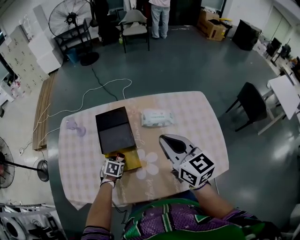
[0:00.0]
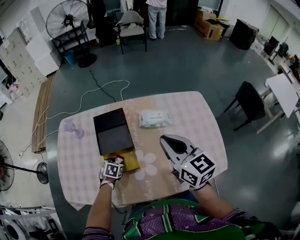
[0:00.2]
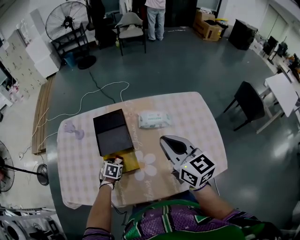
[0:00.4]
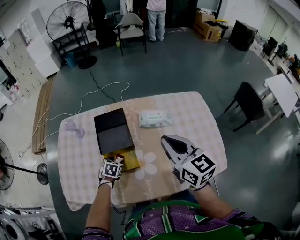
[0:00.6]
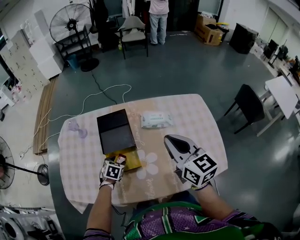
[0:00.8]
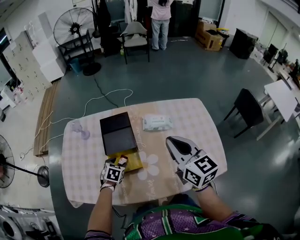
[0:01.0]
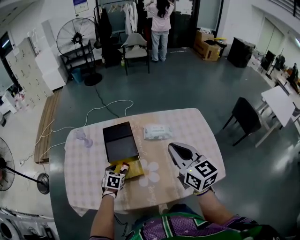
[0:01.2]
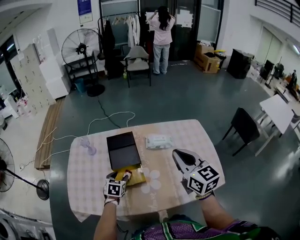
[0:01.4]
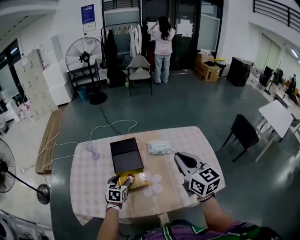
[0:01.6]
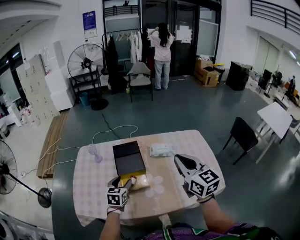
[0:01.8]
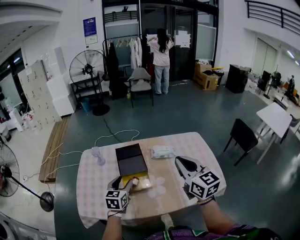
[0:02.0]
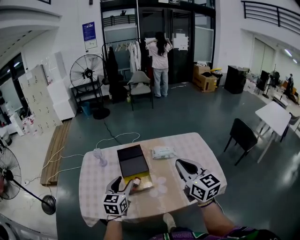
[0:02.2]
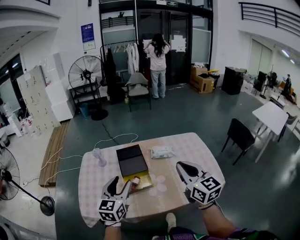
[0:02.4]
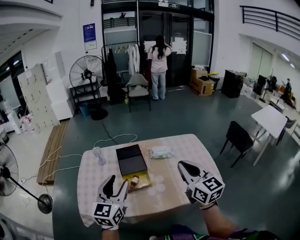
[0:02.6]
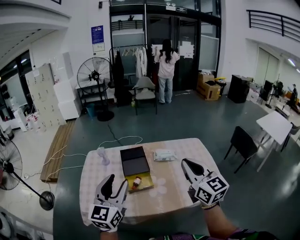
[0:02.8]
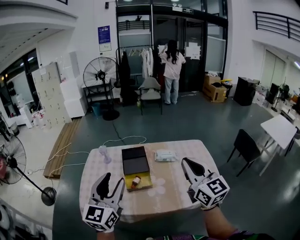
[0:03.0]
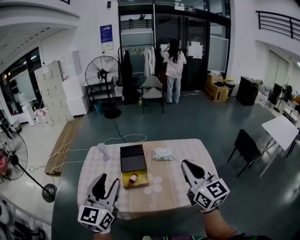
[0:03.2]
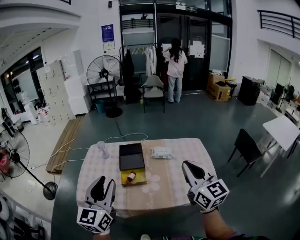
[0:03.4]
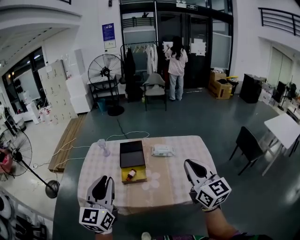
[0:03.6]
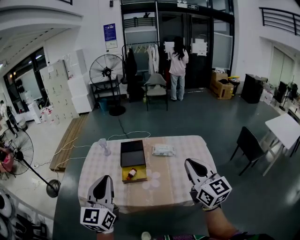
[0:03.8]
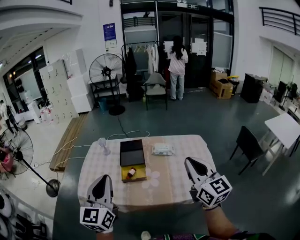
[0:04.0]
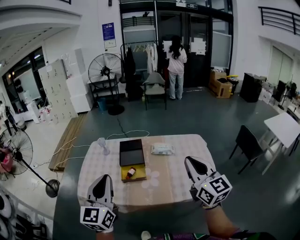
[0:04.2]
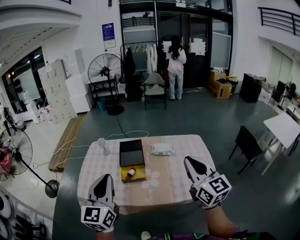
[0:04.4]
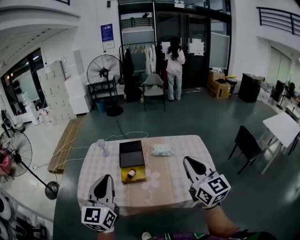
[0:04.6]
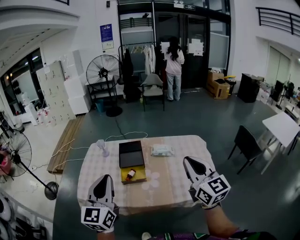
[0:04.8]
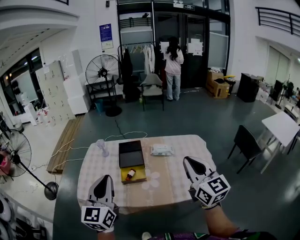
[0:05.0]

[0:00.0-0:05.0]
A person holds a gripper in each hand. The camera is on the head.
0:00.0 to 0:01.6: The right gripper heads upward and backward, covering roughly 15 cm. The left gripper shifts about 15 cm upward, and rotates approximately 30 degrees.
0:01.6 to 0:03.4: The left gripper travels upward and backward by roughly 40 cm, angles its fingers upward, by roughly 40 degrees, and closes its fingers; the right gripper moves backward and upward, approximately 20 cm.
0:03.4 to 0:05.0: The left gripper closes its fingers.

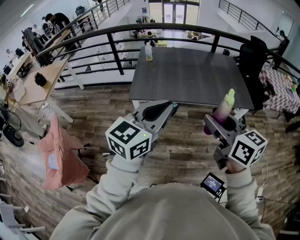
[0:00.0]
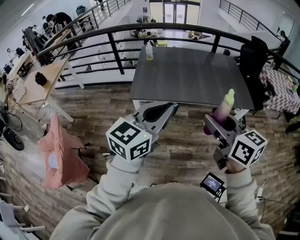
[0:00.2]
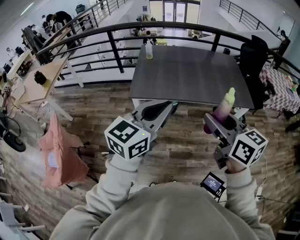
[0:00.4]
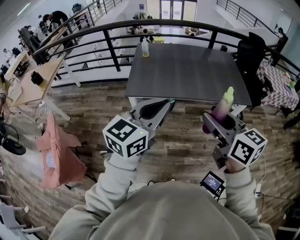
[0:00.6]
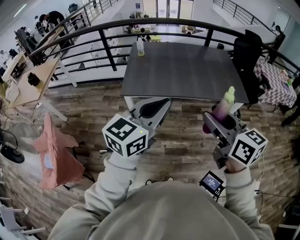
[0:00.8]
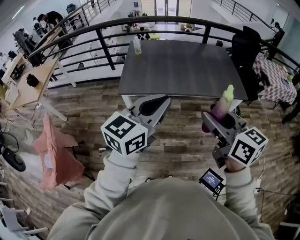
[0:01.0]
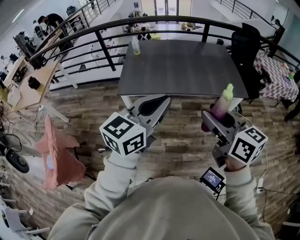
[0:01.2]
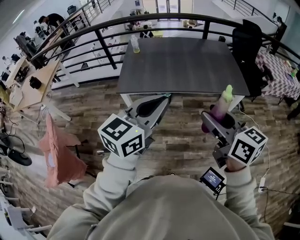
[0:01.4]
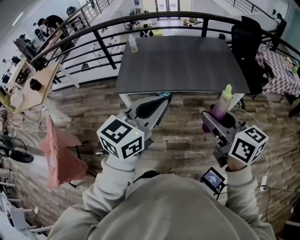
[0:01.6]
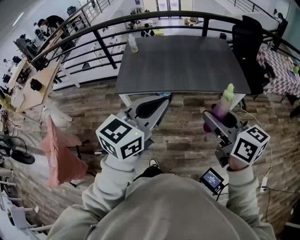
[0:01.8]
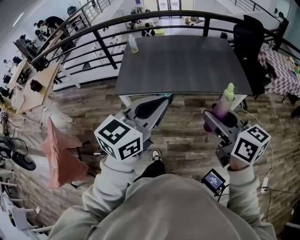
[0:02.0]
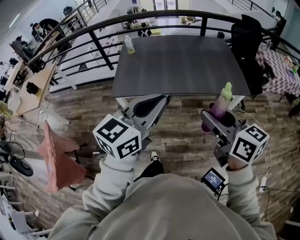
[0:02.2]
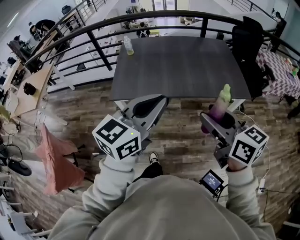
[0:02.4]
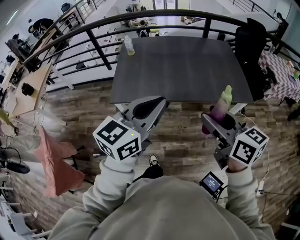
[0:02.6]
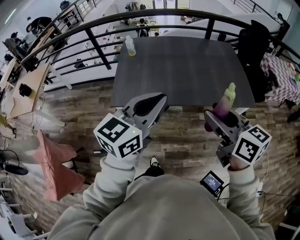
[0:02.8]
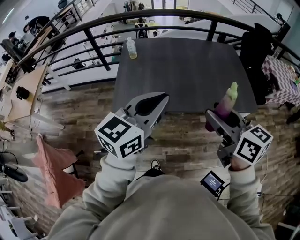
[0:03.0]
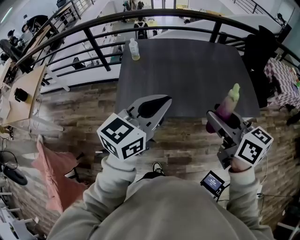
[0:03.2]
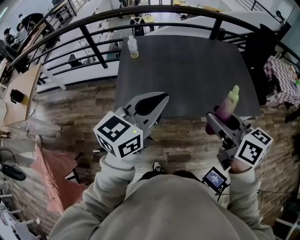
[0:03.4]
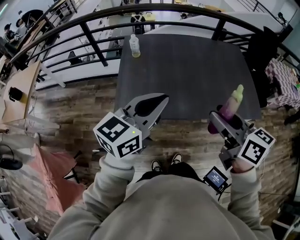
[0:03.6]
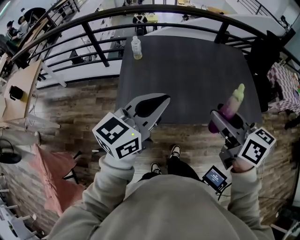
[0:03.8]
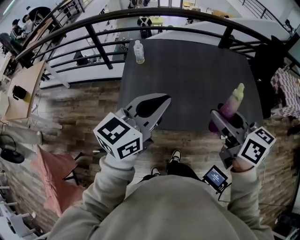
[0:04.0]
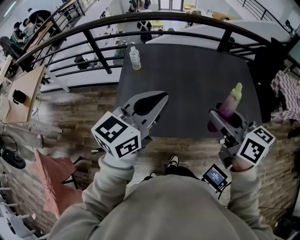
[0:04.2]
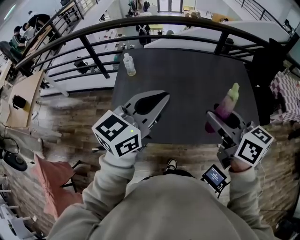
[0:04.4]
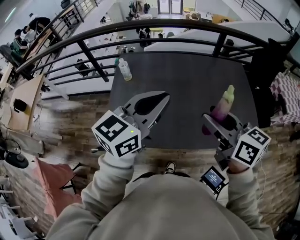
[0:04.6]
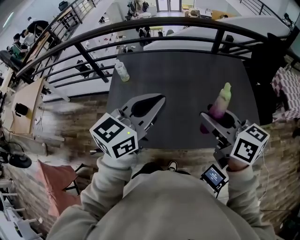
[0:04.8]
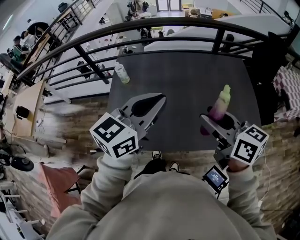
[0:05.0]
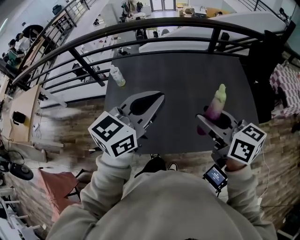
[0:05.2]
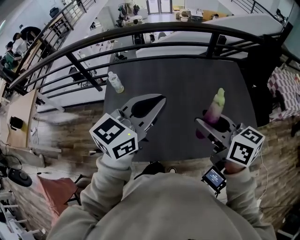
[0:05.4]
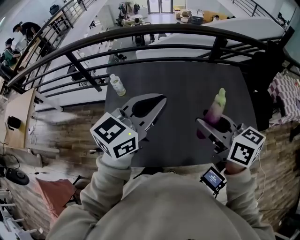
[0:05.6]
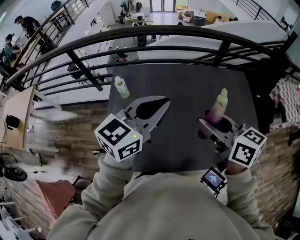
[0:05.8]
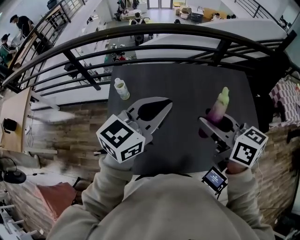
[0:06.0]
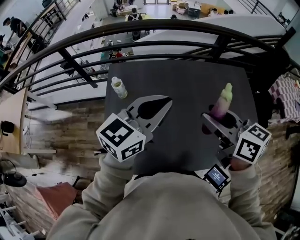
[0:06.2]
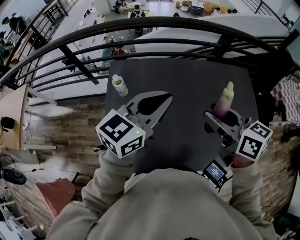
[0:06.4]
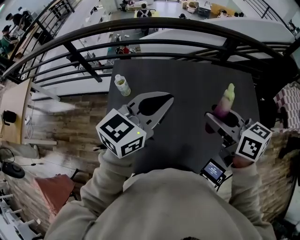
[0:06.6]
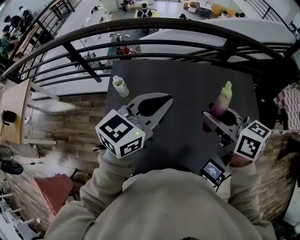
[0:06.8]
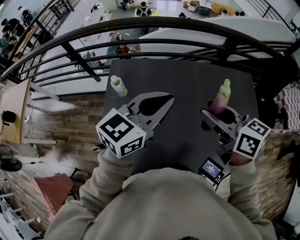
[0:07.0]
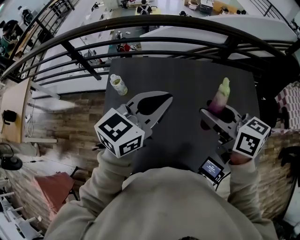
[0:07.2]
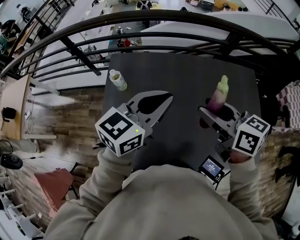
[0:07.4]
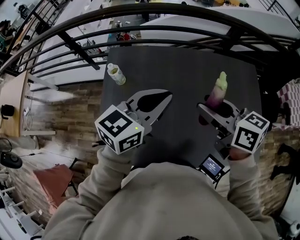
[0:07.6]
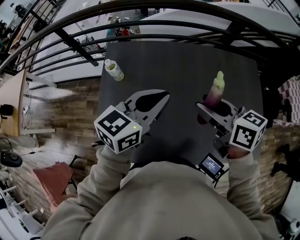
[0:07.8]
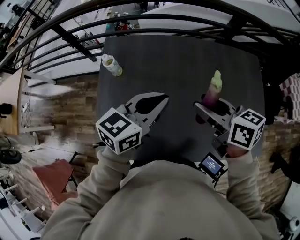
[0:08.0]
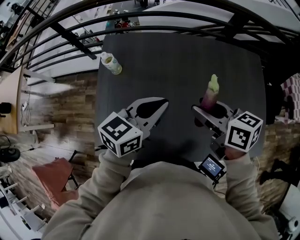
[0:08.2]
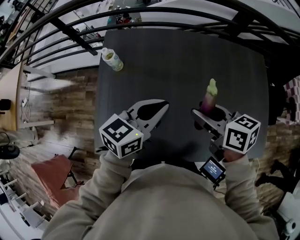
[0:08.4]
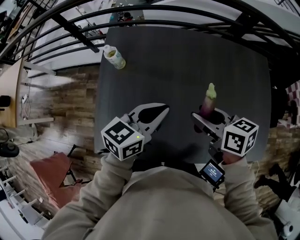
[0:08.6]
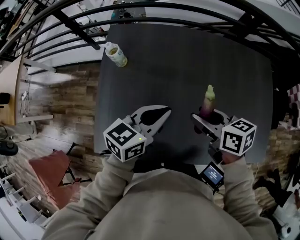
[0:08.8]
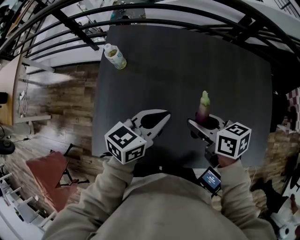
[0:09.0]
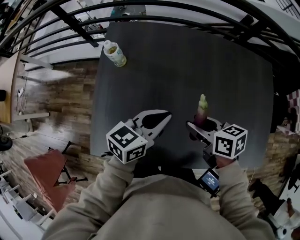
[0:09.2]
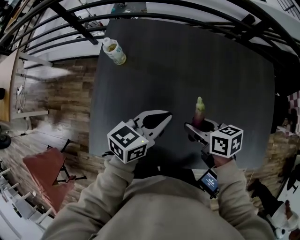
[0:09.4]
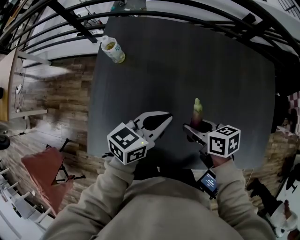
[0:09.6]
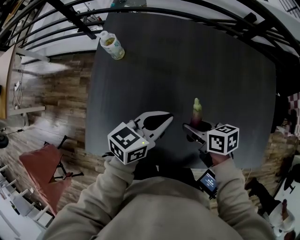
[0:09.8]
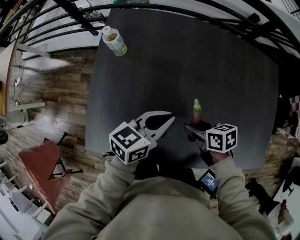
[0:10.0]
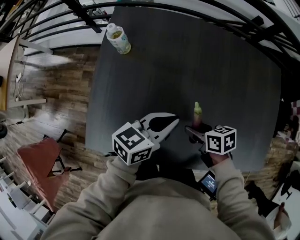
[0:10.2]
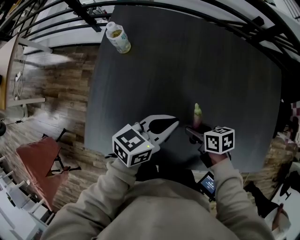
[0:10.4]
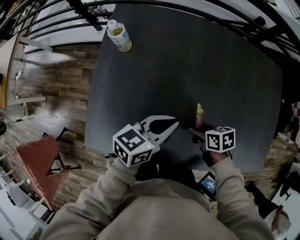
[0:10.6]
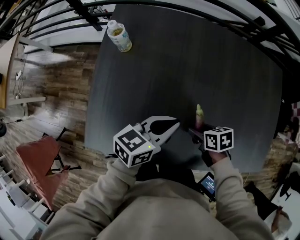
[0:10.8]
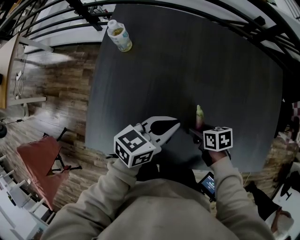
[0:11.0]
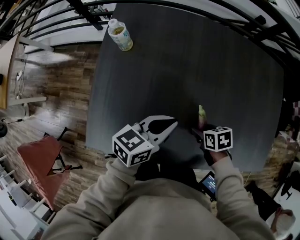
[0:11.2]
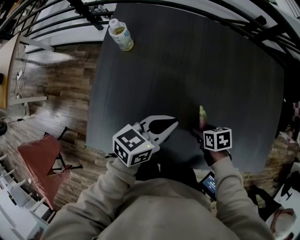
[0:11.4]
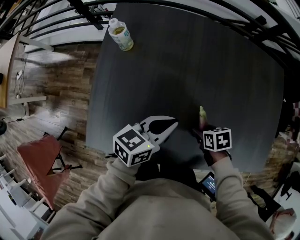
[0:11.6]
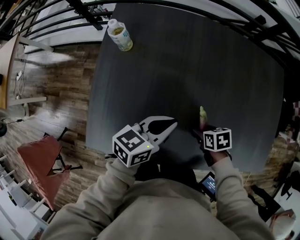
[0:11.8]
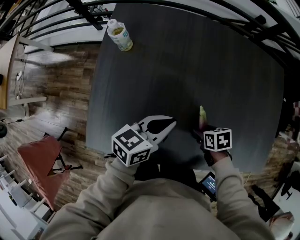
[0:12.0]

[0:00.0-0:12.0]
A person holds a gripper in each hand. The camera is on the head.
0:00.0 to 0:01.6: Both grippers move to the right, some 10 cm.
0:01.6 to 0:03.0: Both grippers travel together forward, about 20 cm.
0:03.0 to 0:04.4: Both grippers move forward, approximately 20 cm.
0:04.4 to 0:06.0: The grippers both shift forward by about 20 cm.
0:06.0 to 0:07.6: The left gripper goes some 5 cm downward, while the right gripper shifts some 10 cm forward and downward.
0:07.6 to 0:09.0: Both grippers move downward, some 15 cm. The right gripper changes its angle by about 20 degrees.
0:09.0 to 0:10.4: The left gripper goes some 5 cm downward. The right gripper heads downward, covering approximately 15 cm, and changes its angle by about 20 degrees.
0:10.4 to 0:12.0: The right gripper travels downward by roughly 5 cm.

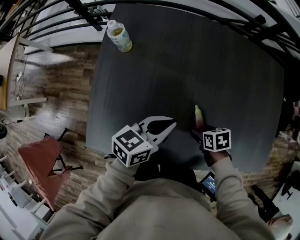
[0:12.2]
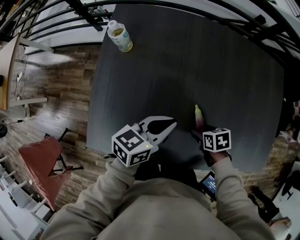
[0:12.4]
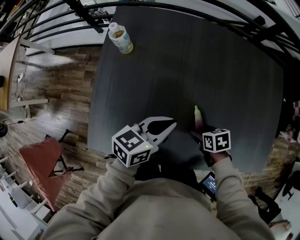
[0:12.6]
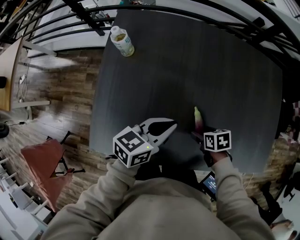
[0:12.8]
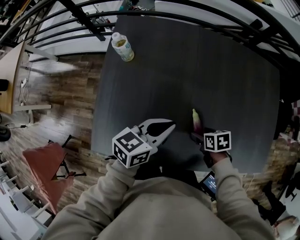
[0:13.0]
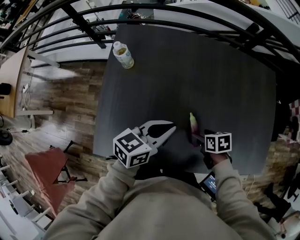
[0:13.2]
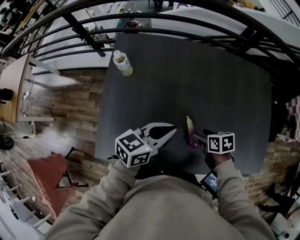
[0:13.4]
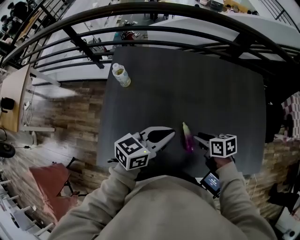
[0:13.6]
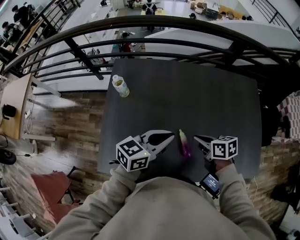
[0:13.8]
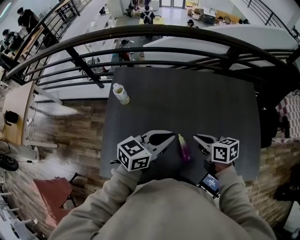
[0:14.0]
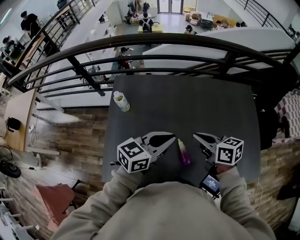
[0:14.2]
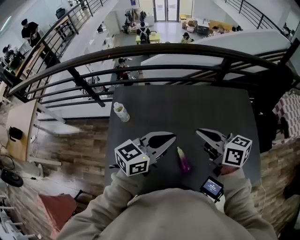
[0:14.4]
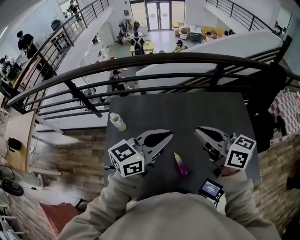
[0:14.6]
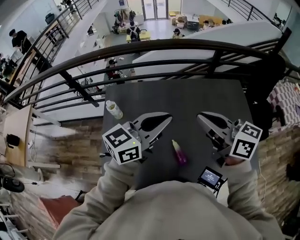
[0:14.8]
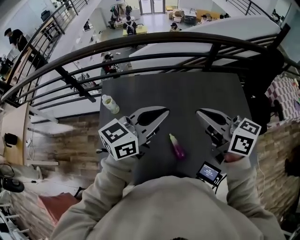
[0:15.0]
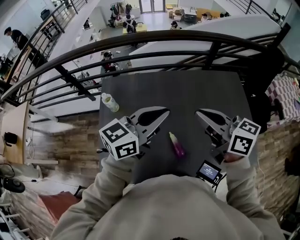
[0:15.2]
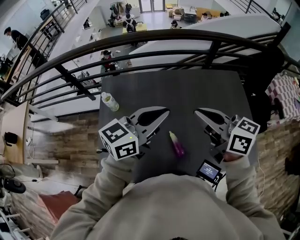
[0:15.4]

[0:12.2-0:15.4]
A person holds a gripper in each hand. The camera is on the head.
0:12.2 to 0:13.8: The grippers both shift upward by roughly 15 cm. The right gripper rotates approximately 30 degrees, and closes its fingers.
0:13.8 to 0:15.4: The right gripper is displaced upward by about 25 cm, and tilts its fingers some 30 degrees upward. The left gripper is displaced upward by some 15 cm.

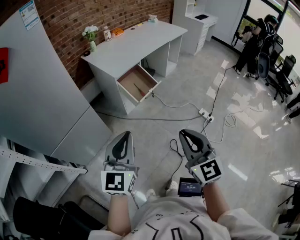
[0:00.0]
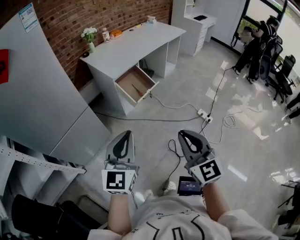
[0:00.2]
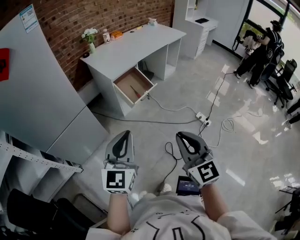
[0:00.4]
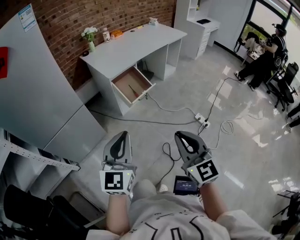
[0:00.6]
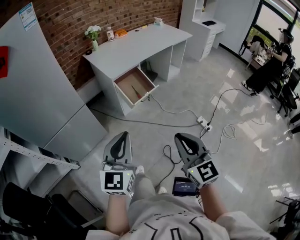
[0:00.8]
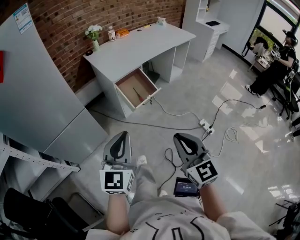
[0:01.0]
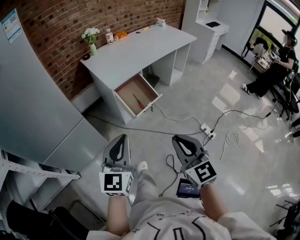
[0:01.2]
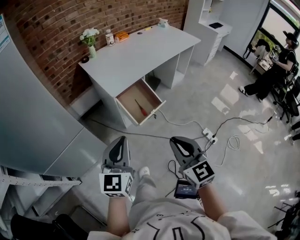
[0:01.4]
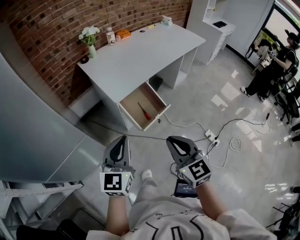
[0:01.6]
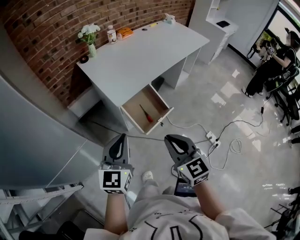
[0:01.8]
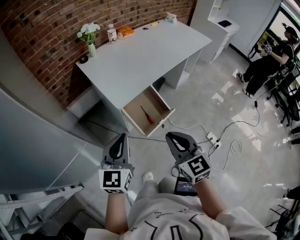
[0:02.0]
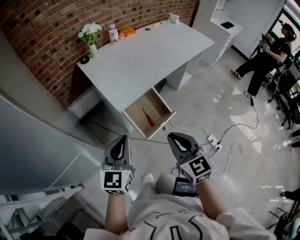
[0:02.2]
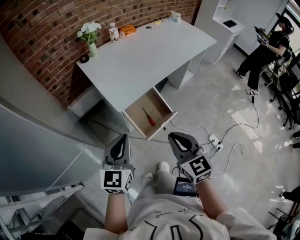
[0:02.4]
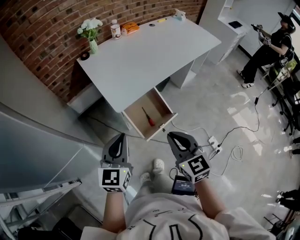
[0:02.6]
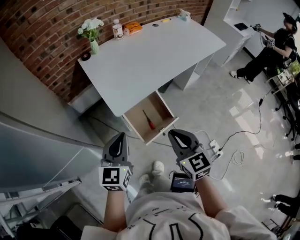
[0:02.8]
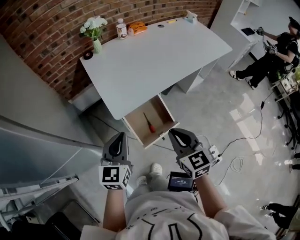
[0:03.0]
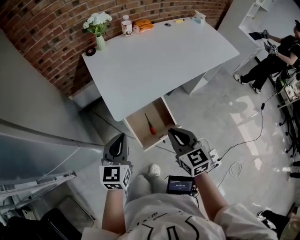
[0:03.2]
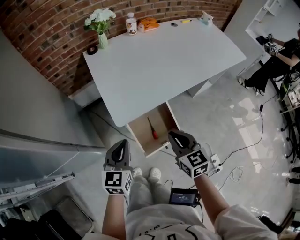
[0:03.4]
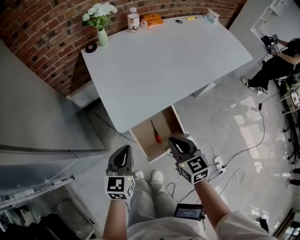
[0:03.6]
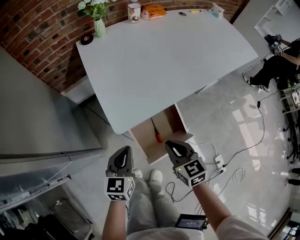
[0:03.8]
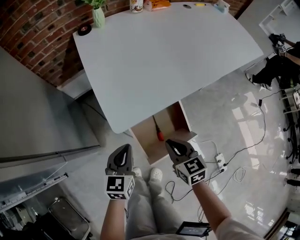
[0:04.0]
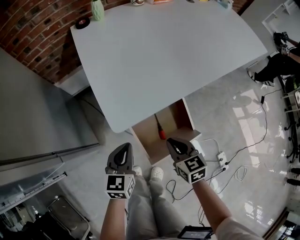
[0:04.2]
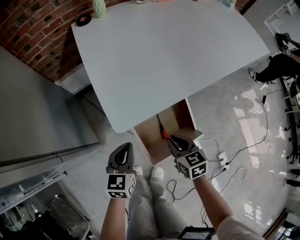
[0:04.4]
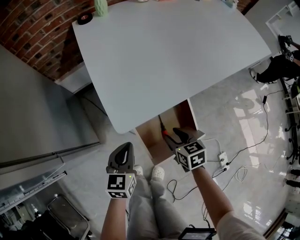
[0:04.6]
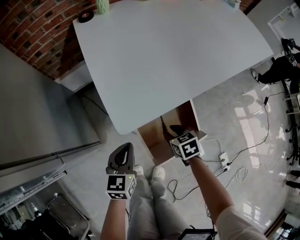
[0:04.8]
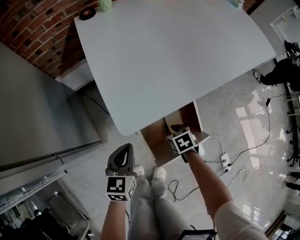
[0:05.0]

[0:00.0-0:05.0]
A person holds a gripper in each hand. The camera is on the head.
0:00.0 to 0:01.6: Both grippers move forward, approximately 30 cm.
0:01.6 to 0:03.4: Both grippers travel together forward and downward, about 30 cm. The left gripper swivels about 20 degrees.
0:03.4 to 0:05.0: The left gripper moves downward, about 20 cm. The right gripper heads downward, covering approximately 35 cm, tilts its fingers some 40 degrees downward, and opens.
